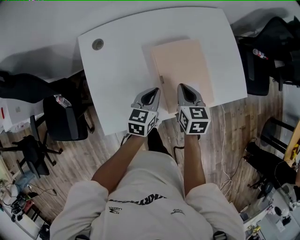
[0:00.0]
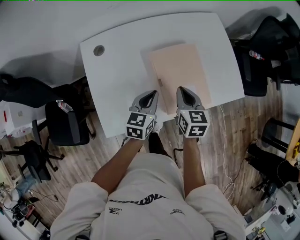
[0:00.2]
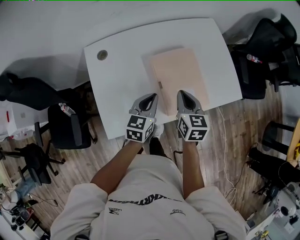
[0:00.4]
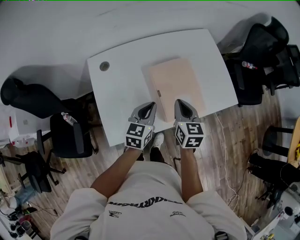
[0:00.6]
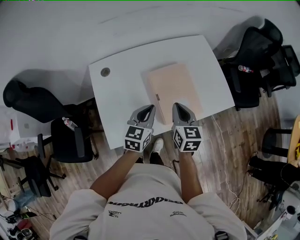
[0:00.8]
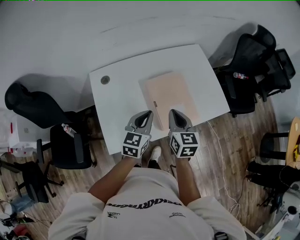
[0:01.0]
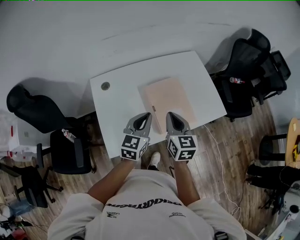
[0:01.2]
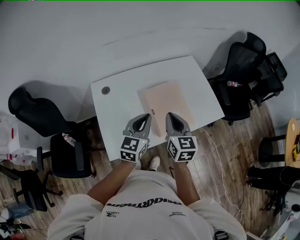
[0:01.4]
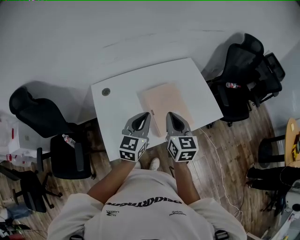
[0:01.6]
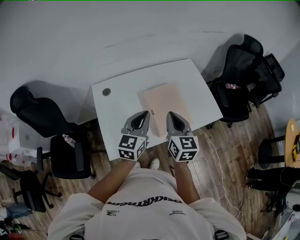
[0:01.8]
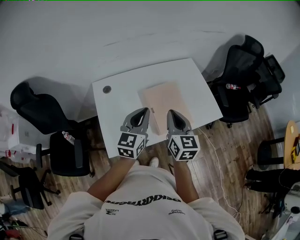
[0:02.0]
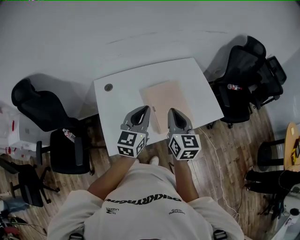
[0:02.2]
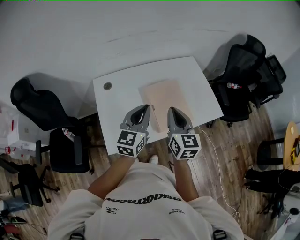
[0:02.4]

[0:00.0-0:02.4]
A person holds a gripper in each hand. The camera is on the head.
0:00.0 to 0:01.2: The right gripper travels upward and backward by some 20 cm. The left gripper is displaced upward by about 20 cm, and turns by roughly 20 degrees.
0:01.2 to 0:02.4: The grippers both shift upward by roughly 5 cm.

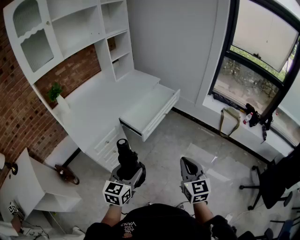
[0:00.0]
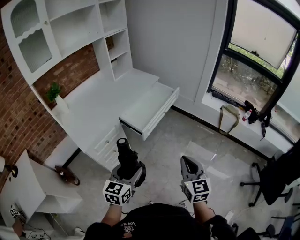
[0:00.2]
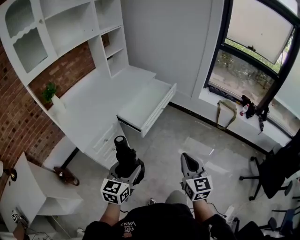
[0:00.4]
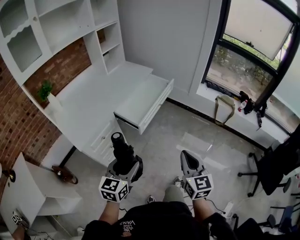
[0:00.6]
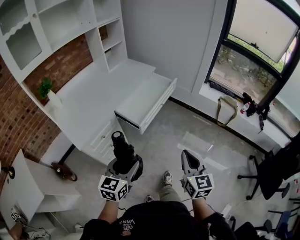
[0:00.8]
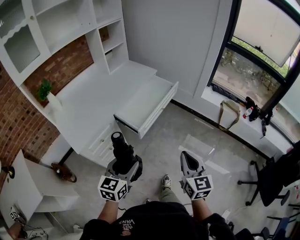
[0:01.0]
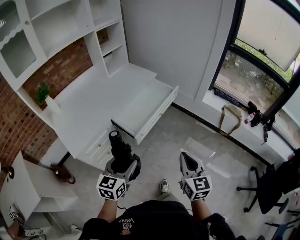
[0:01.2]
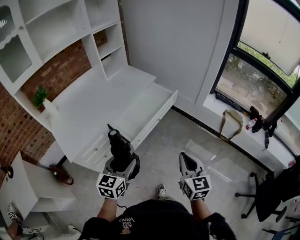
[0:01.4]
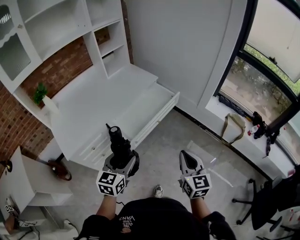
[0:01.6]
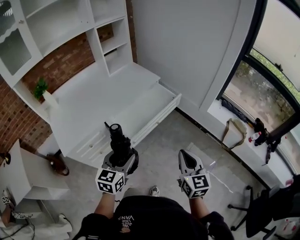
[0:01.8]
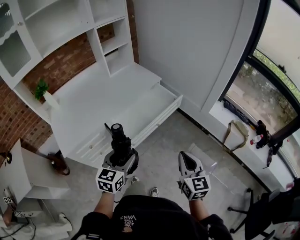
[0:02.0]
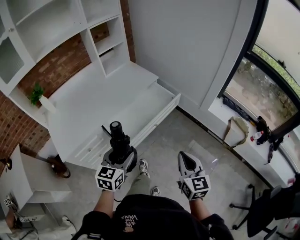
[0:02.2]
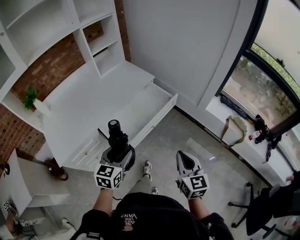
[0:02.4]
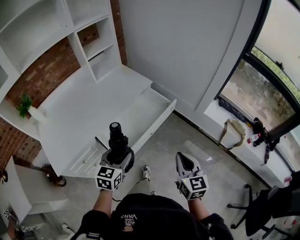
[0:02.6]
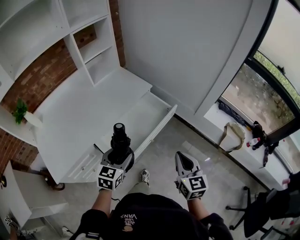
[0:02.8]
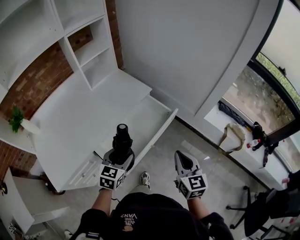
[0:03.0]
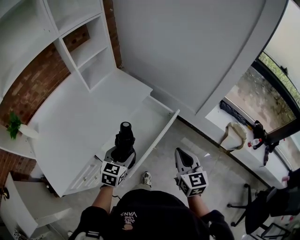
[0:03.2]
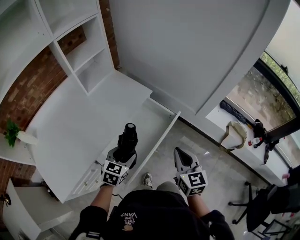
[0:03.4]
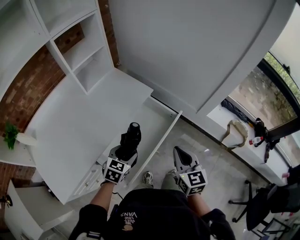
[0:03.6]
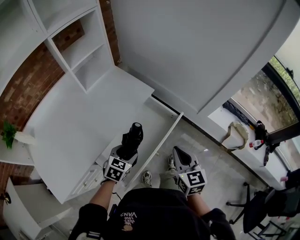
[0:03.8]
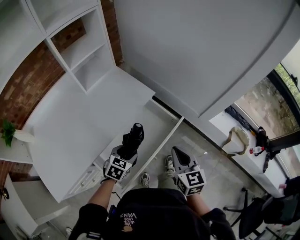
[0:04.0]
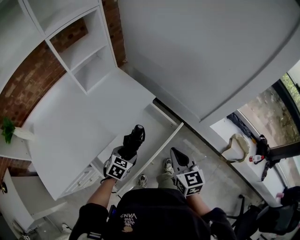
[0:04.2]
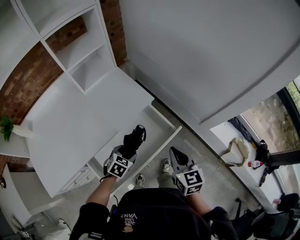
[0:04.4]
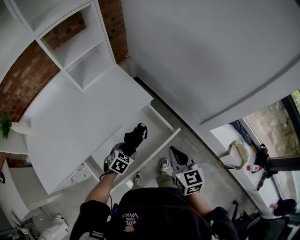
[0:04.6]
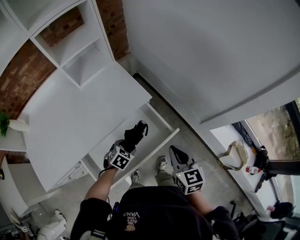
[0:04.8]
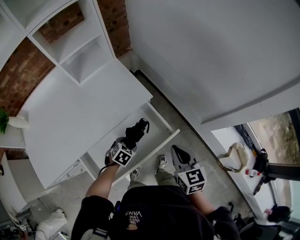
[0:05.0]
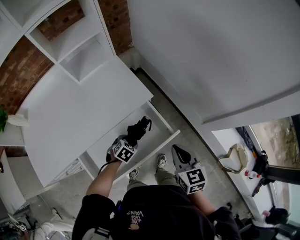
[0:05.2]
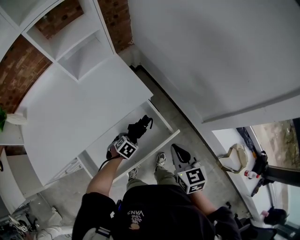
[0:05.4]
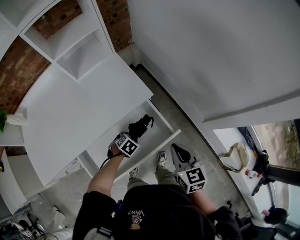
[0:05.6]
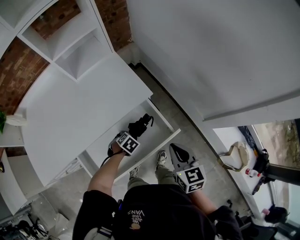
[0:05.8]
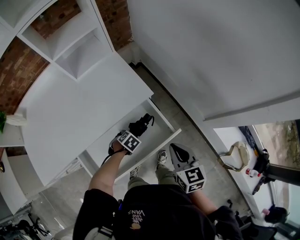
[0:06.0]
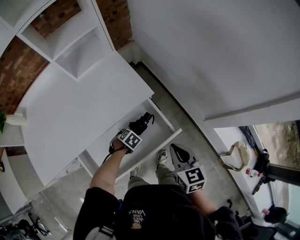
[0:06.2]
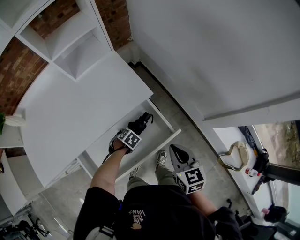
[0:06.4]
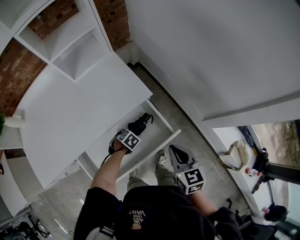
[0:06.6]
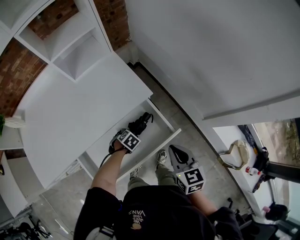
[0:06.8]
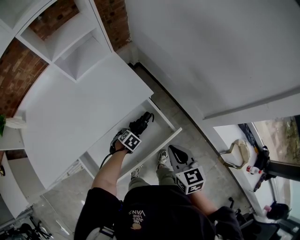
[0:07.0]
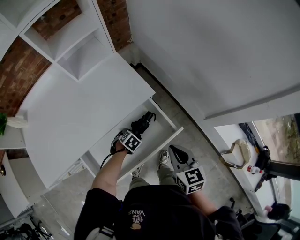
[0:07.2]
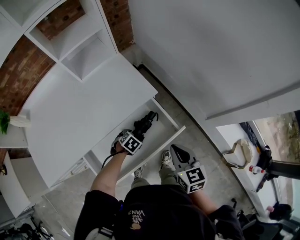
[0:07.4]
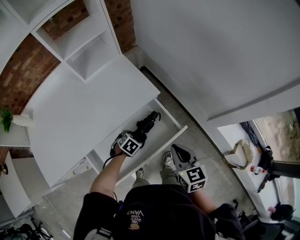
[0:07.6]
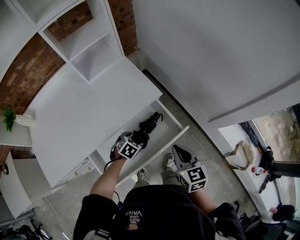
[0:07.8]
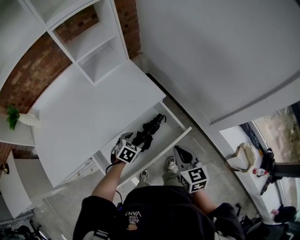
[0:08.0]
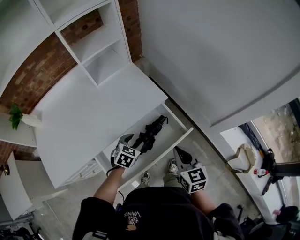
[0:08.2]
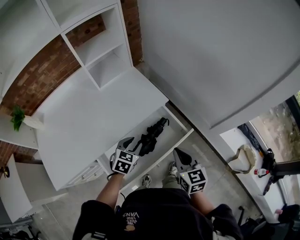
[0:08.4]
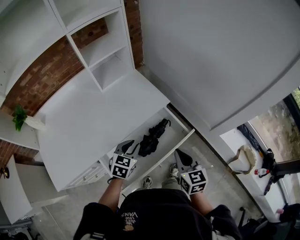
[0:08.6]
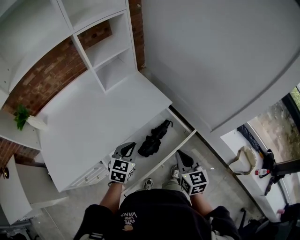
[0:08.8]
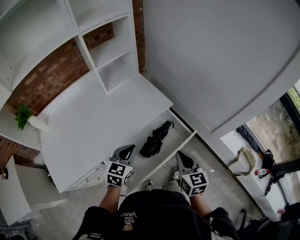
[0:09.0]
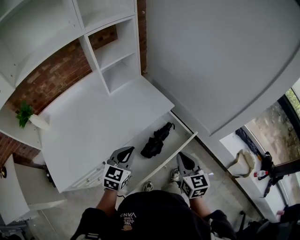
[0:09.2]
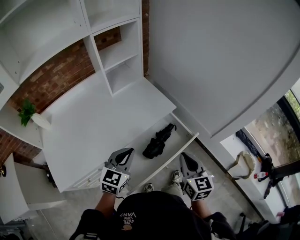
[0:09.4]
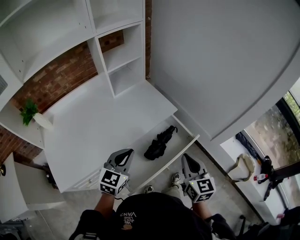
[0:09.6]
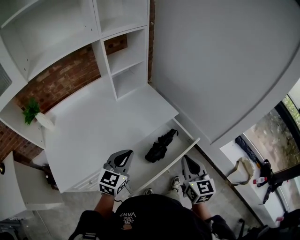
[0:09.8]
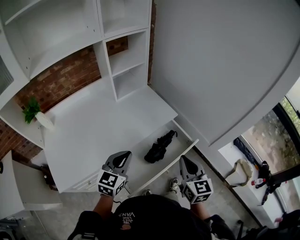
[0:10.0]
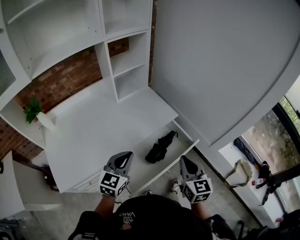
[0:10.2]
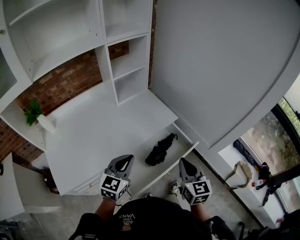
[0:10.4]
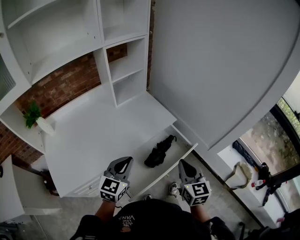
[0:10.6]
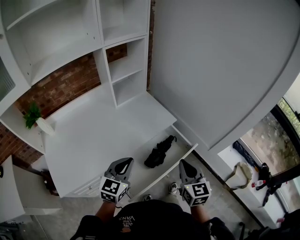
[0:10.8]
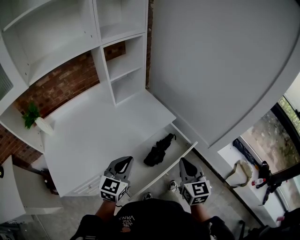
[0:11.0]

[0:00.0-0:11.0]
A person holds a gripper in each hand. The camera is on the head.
0:00.0 to 0:01.6: The grippers both shift forward by approximately 25 cm.
0:01.6 to 0:03.2: Both grippers move forward, some 30 cm.
0:03.2 to 0:04.8: The right gripper shifts about 20 cm forward. Meanwhile the left gripper shifts some 25 cm downward and forward, and turns by about 30 degrees.
0:04.8 to 0:06.2: The left gripper goes roughly 10 cm downward, and changes its angle by approximately 20 degrees. Meanwhile the right gripper moves roughly 5 cm.
0:06.2 to 0:07.8: The left gripper shifts approximately 10 cm upward. The right gripper moves about 5 cm.
0:07.8 to 0:09.4: The right gripper is displaced upward, backward and to the left by approximately 15 cm; the left gripper moves upward and to the left, some 30 cm, tips its fingers upward by some 50 degrees, and closes up.
0:09.4 to 0:11.0: There are only small adjustments of the grippers.

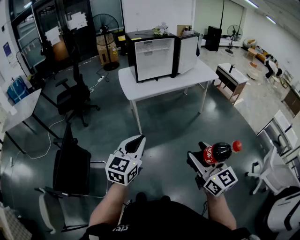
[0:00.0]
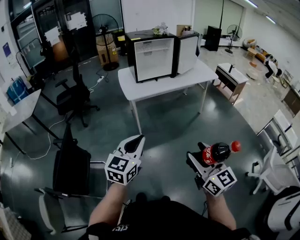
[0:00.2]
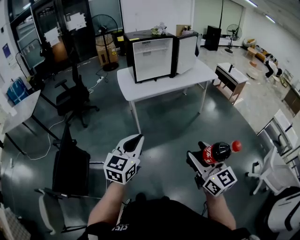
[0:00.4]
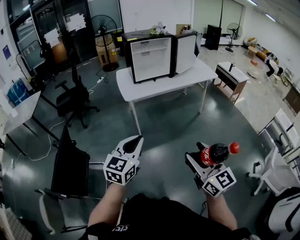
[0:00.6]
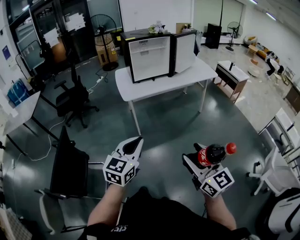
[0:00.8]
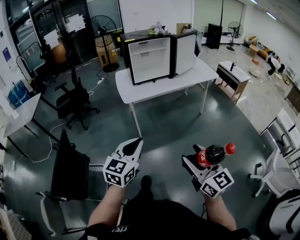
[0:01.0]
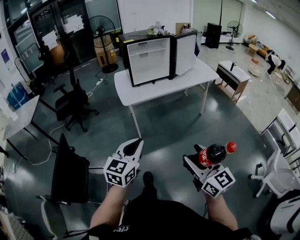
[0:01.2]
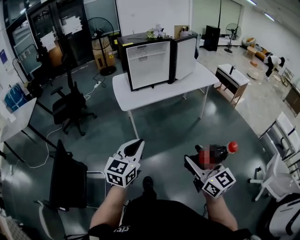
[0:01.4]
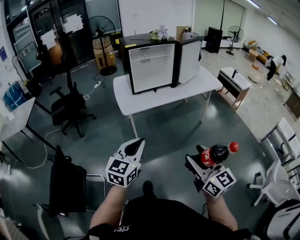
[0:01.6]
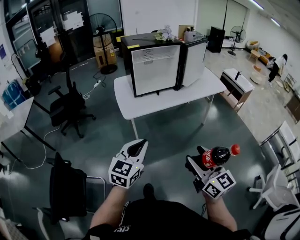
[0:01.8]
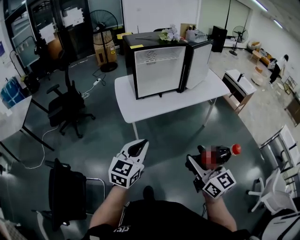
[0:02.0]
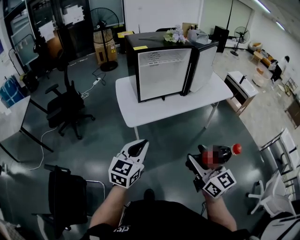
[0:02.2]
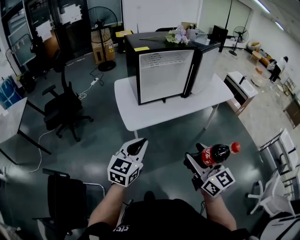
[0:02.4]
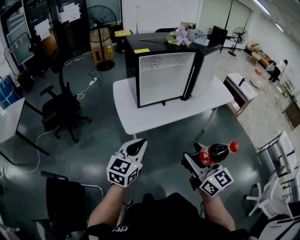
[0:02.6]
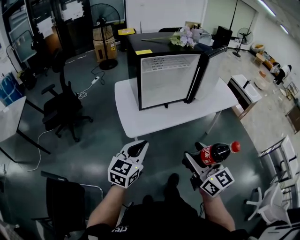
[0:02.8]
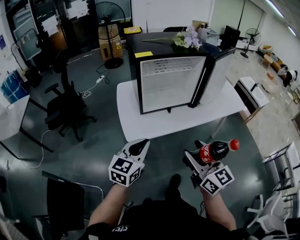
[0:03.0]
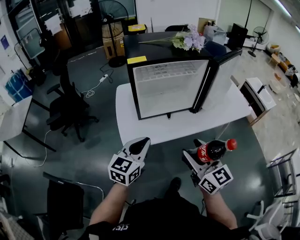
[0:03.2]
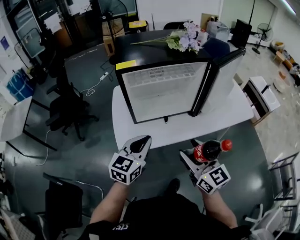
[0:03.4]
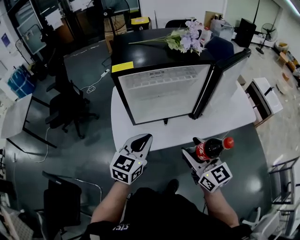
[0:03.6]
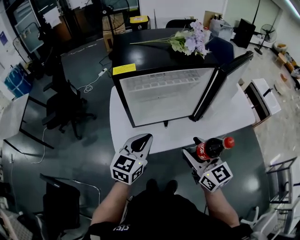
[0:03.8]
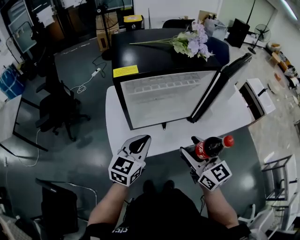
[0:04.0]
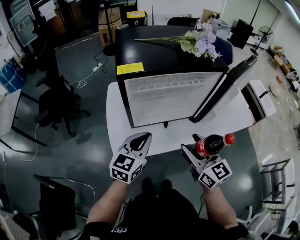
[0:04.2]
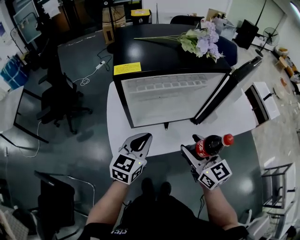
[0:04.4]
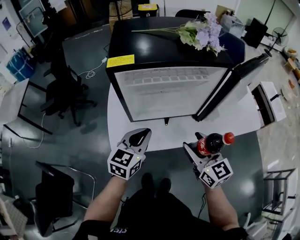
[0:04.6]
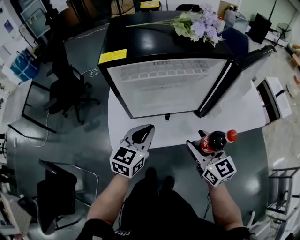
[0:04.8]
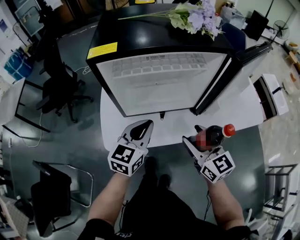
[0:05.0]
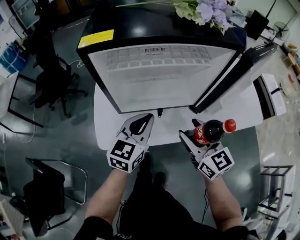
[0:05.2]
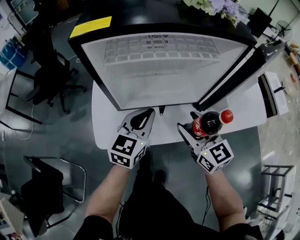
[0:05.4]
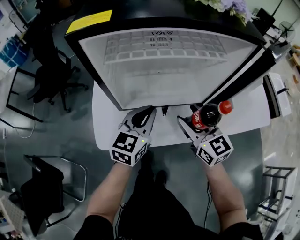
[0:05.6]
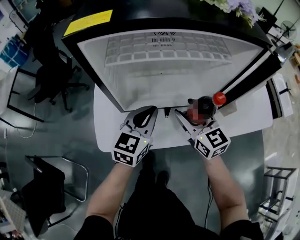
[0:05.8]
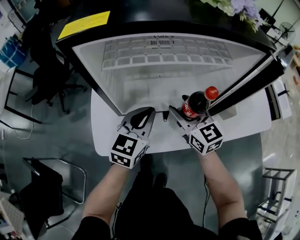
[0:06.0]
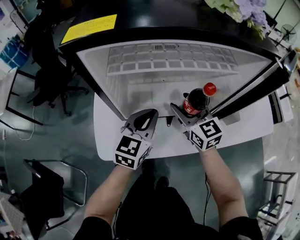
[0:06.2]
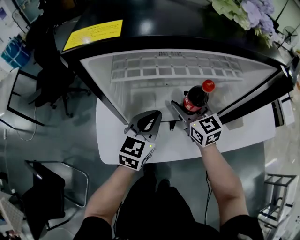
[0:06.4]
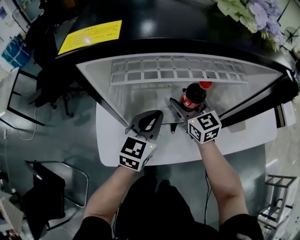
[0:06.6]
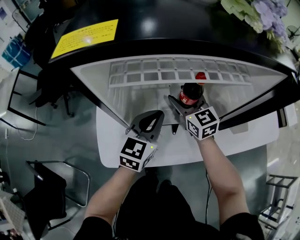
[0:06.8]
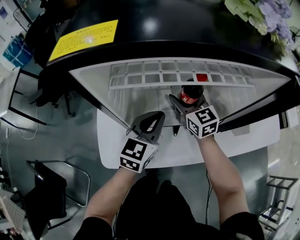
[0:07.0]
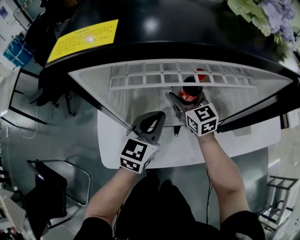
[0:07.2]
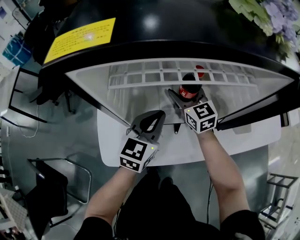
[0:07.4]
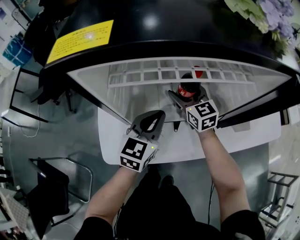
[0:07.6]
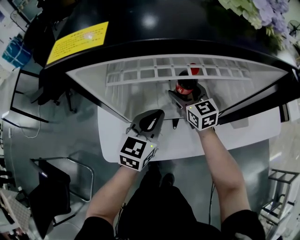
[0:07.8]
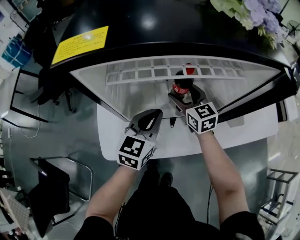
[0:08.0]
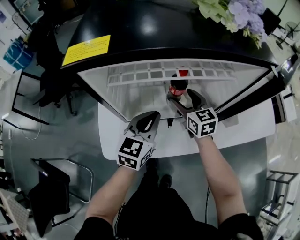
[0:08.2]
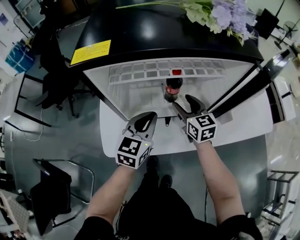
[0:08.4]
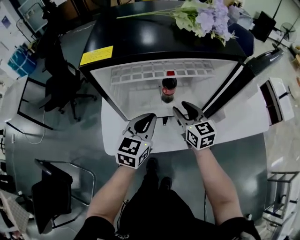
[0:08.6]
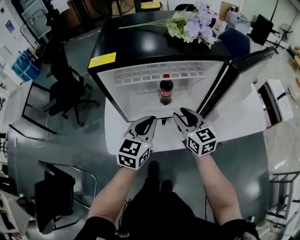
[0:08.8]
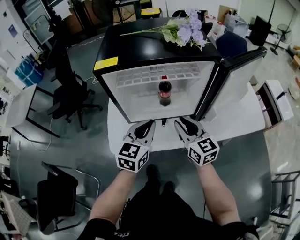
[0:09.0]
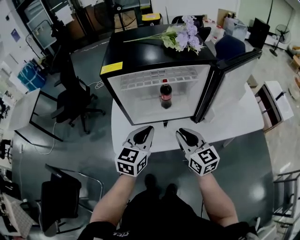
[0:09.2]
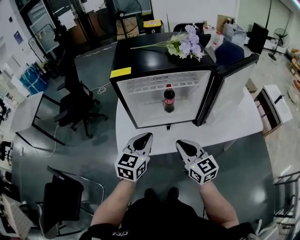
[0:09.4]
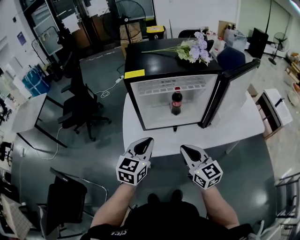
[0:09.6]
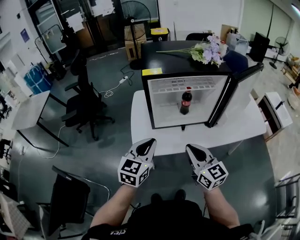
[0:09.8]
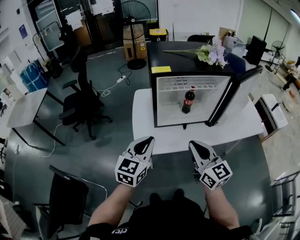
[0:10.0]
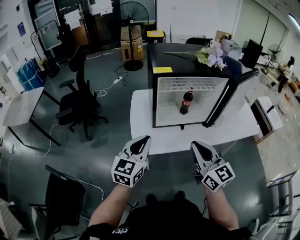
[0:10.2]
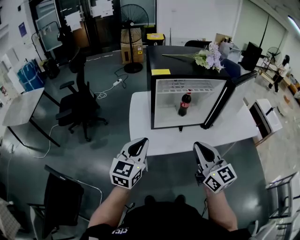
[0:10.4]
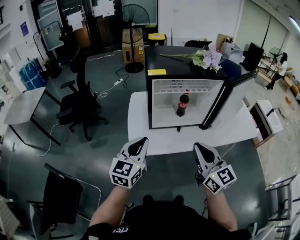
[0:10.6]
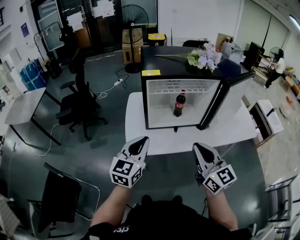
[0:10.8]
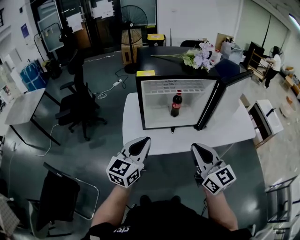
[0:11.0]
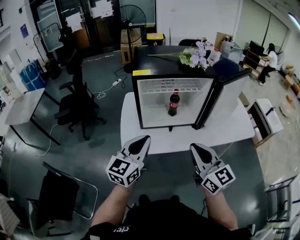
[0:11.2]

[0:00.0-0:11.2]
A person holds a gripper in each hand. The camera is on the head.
0:00.0 to 0:01.6: Both grippers travel together forward, about 20 cm.
0:01.6 to 0:03.2: Both grippers are carried forward, approximately 50 cm.
0:03.2 to 0:04.8: The right gripper shifts about 25 cm forward, downward and to the right; the left gripper travels forward and to the right by some 20 cm.
0:04.8 to 0:06.4: The right gripper heads forward and downward, covering approximately 30 cm. The left gripper shifts some 20 cm forward and downward.
0:08.0 to 0:09.6: Both grippers move backward and upward, some 35 cm. The right gripper closes.
0:09.6 to 0:11.2: Both grippers move upward and backward, some 10 cm. The left gripper goes to the left and returns, roughly 15 cm each way.
